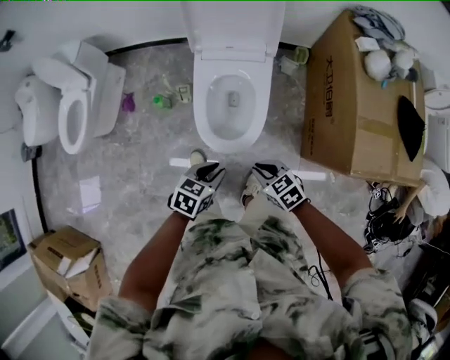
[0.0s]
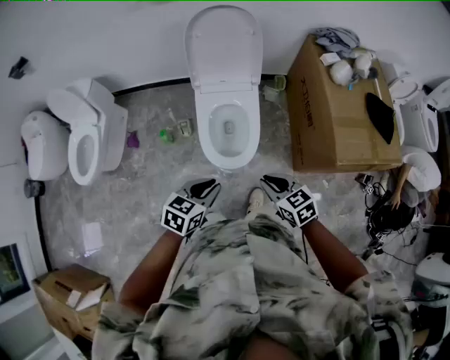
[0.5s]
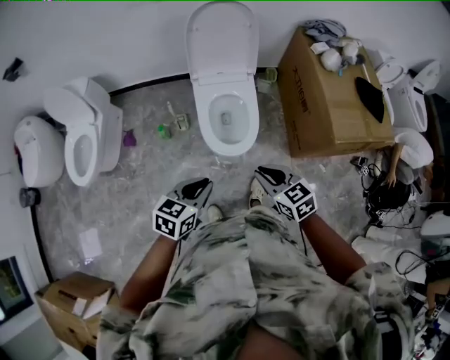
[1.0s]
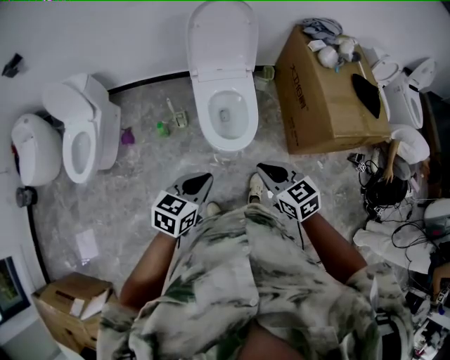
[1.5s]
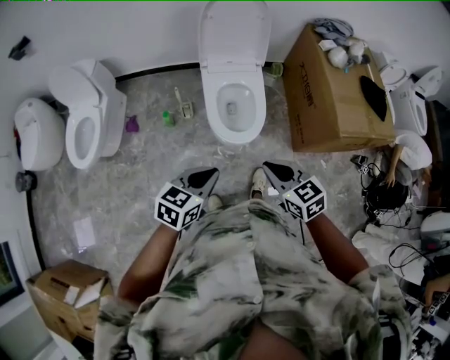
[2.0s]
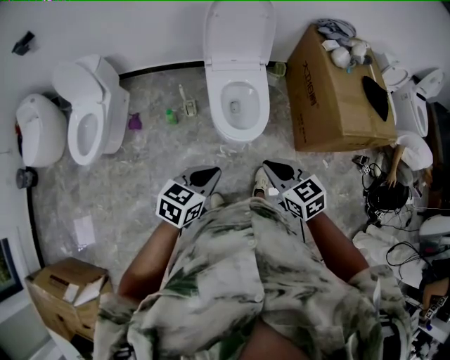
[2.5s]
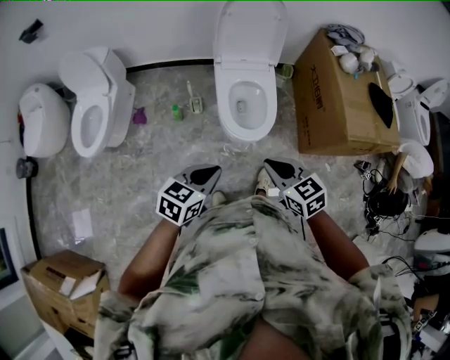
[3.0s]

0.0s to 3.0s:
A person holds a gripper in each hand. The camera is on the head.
0.0s to 1.5s: The two grippers go roughly 35 cm upward, backward and to the left. The left gripper rotates some 20 degrees, while the right gripper changes its angle by roughly 30 degrees.
1.5s to 3.0s: The two grippers go roughly 5 cm to the left.

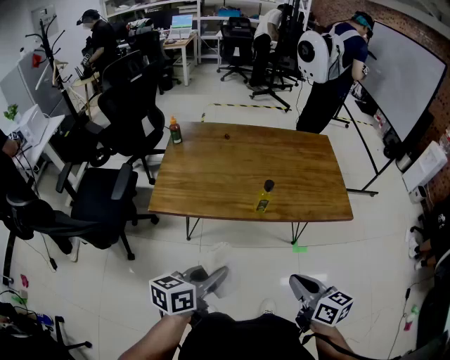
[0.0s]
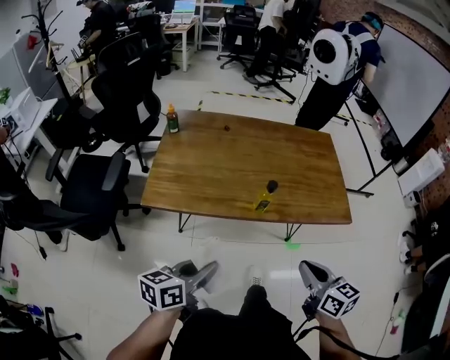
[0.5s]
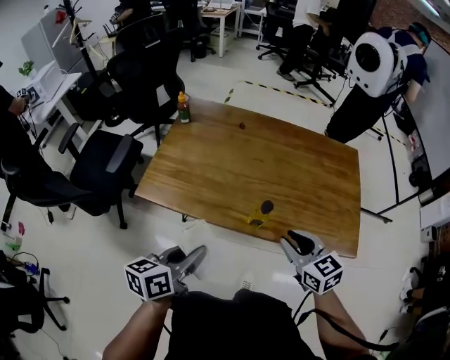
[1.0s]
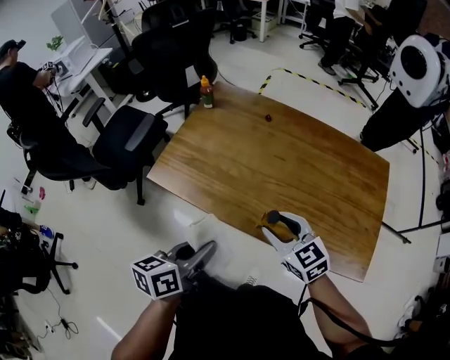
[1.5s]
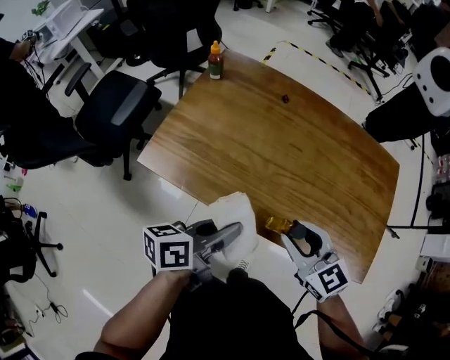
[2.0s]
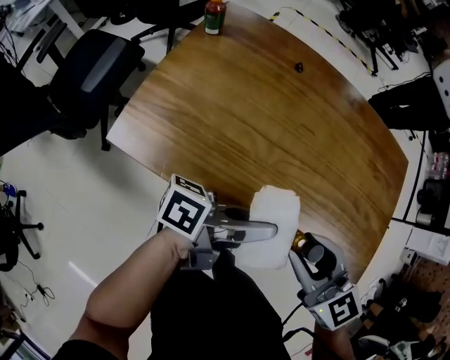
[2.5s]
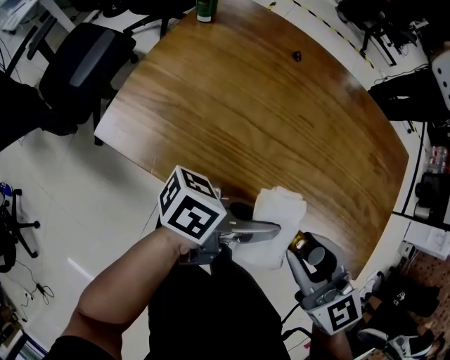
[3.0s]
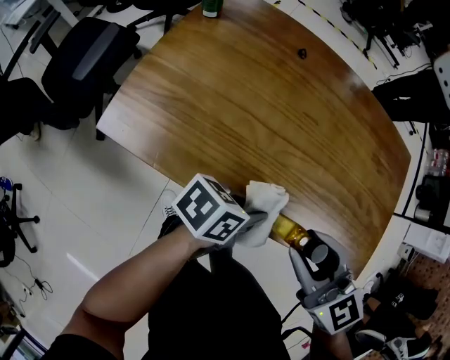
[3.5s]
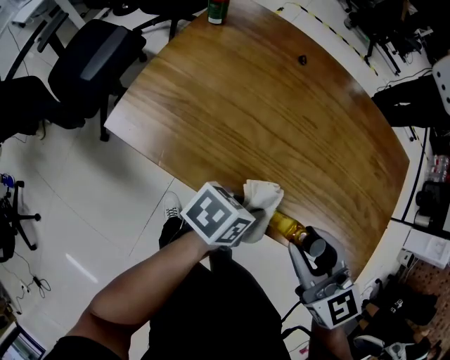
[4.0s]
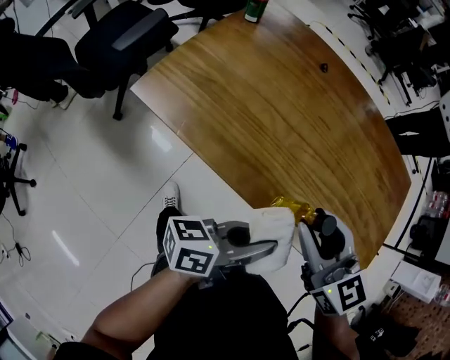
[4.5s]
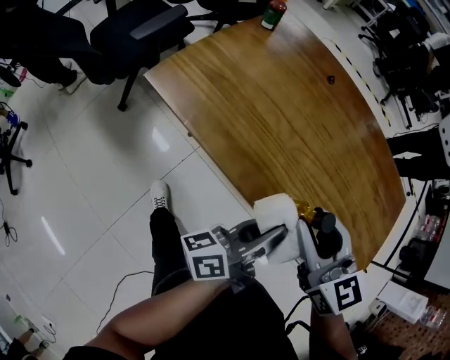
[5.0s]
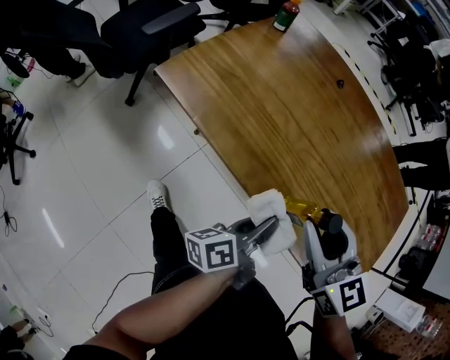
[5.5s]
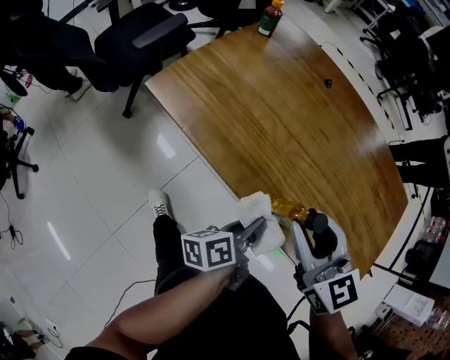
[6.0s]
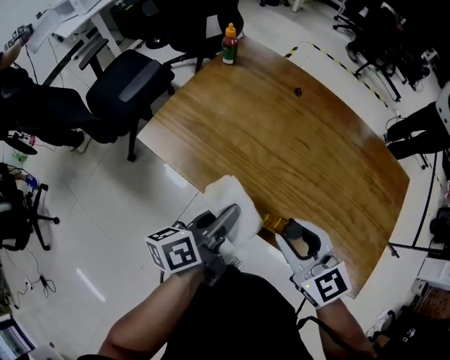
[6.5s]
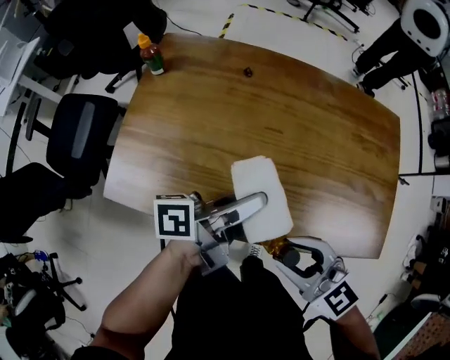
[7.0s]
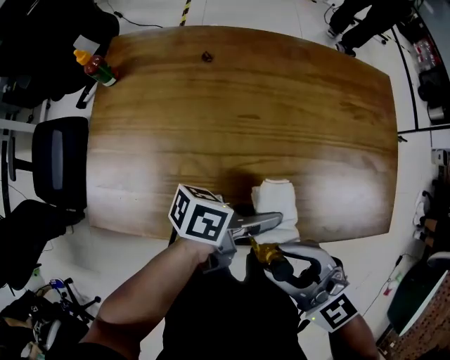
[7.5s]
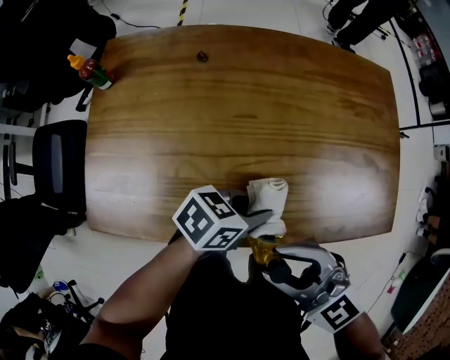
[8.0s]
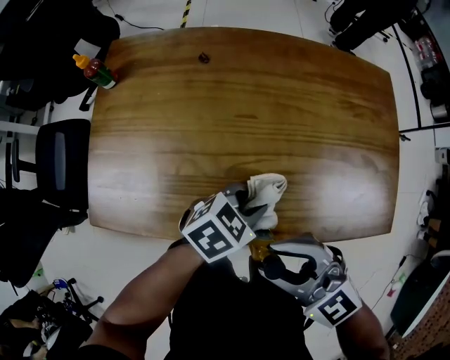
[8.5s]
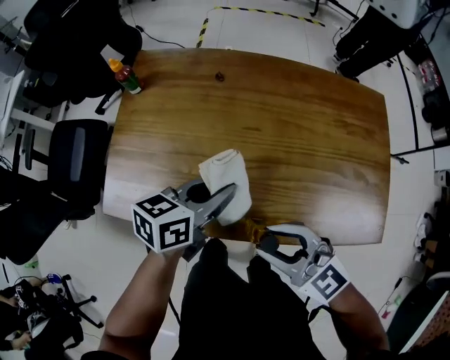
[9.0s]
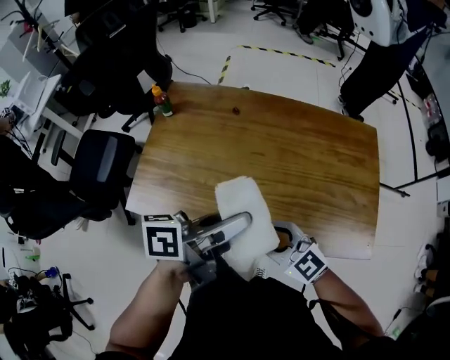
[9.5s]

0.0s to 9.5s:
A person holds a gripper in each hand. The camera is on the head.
0.0s to 2.0s: The right gripper ends up about 30 cm from where it was, changes its angle by some 50 degrees, and opens its fingers. Meanwhile the left gripper ends up some 25 cm from where it was, and turns by approximately 30 degrees.
2.0s to 4.0s: The left gripper goes approximately 15 cm downward and to the right, and swivels some 40 degrees.
4.0s to 5.5s: The left gripper moves approximately 10 cm upward and comes back, and rotates about 70 degrees.
5.5s to 7.5s: The left gripper moves approximately 10 cm upward and comes back, and swivels roughly 80 degrees.
7.5s to 9.5s: The left gripper moves upward, approximately 20 cm, and changes its angle by some 30 degrees.

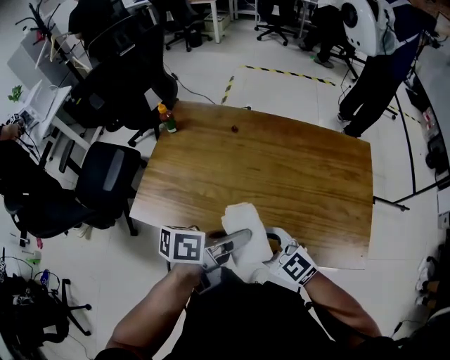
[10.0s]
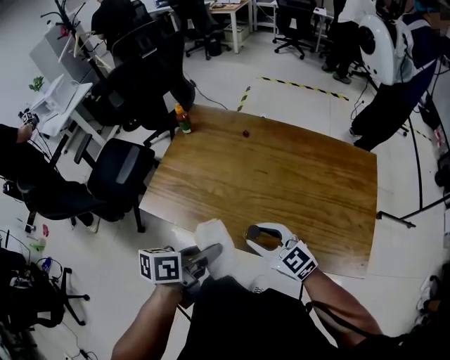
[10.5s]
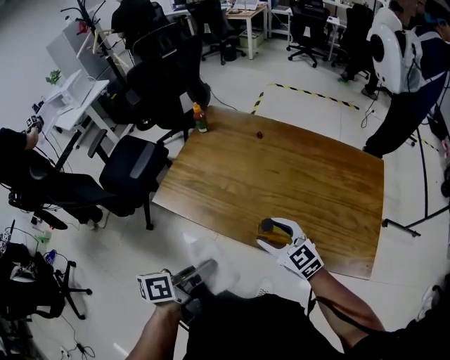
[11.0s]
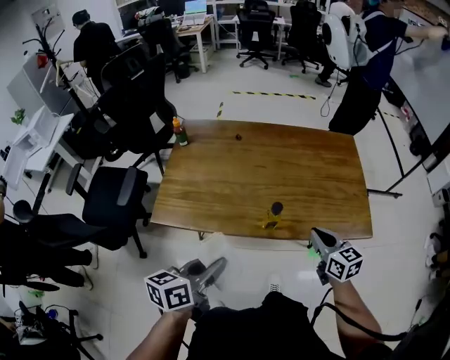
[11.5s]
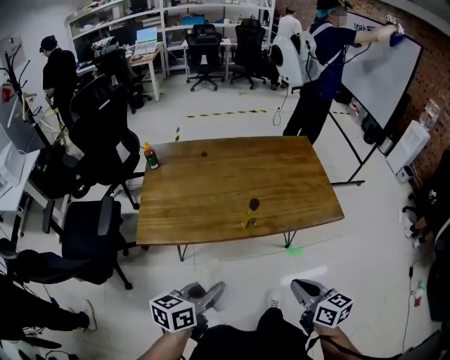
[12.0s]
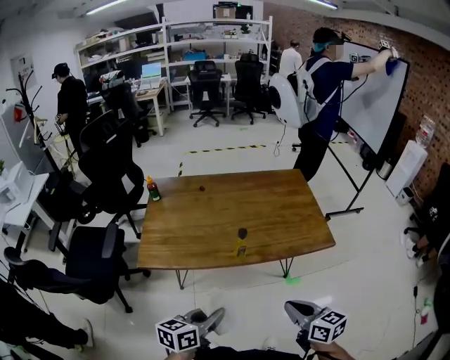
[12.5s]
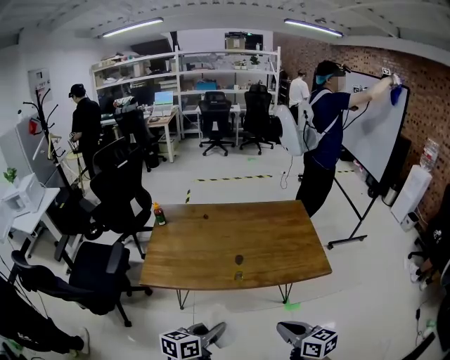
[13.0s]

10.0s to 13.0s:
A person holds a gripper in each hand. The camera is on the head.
10.0s to 11.5s: The left gripper shifts by some 20 cm, and changes its angle by some 20 degrees; the right gripper moves about 15 cm, turns by some 50 degrees, and opens, then closes again.
11.5s to 13.0s: The left gripper travels backward and to the right by roughly 15 cm; the right gripper travels backward by about 25 cm.

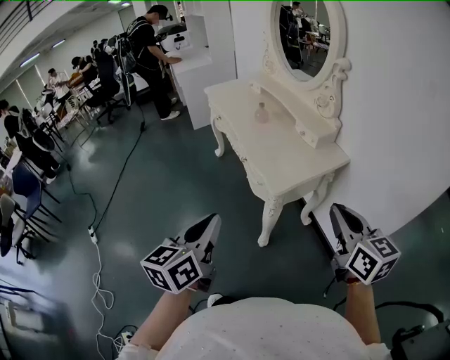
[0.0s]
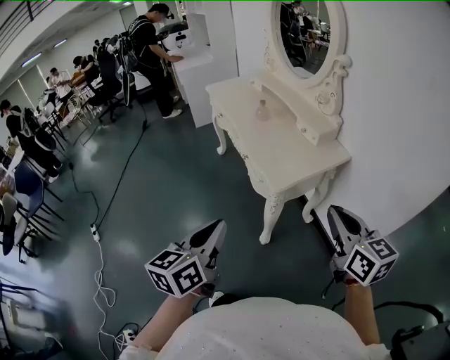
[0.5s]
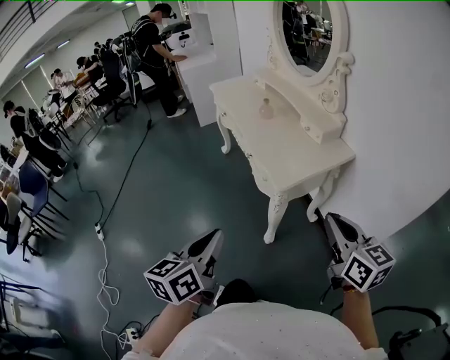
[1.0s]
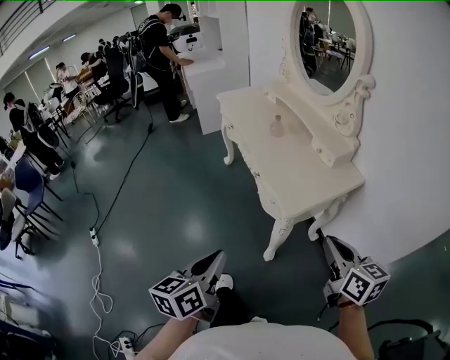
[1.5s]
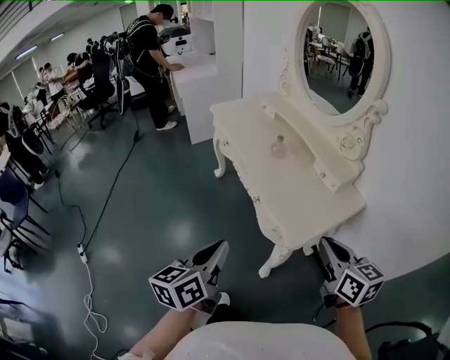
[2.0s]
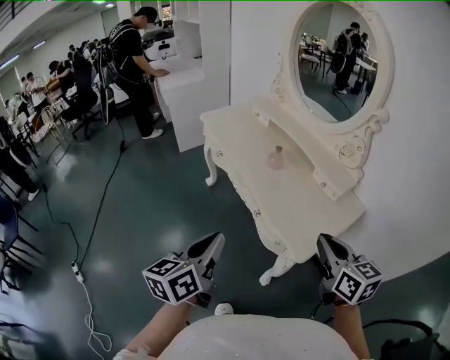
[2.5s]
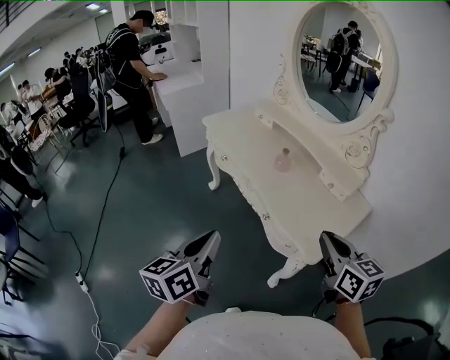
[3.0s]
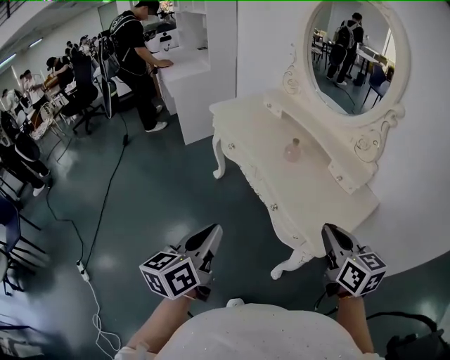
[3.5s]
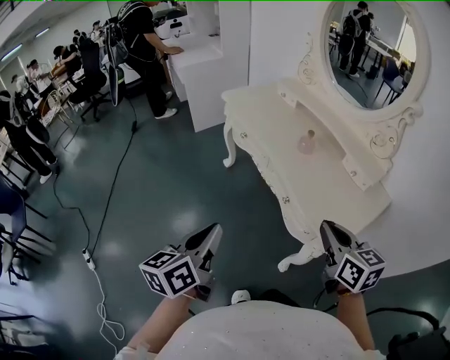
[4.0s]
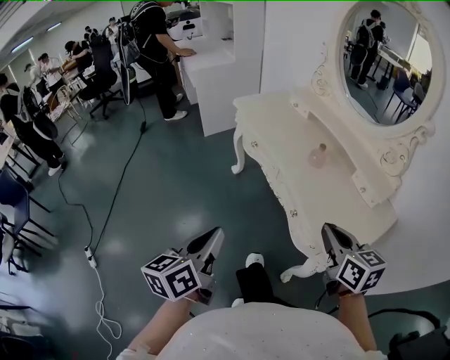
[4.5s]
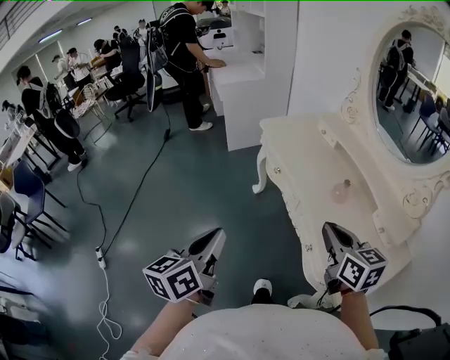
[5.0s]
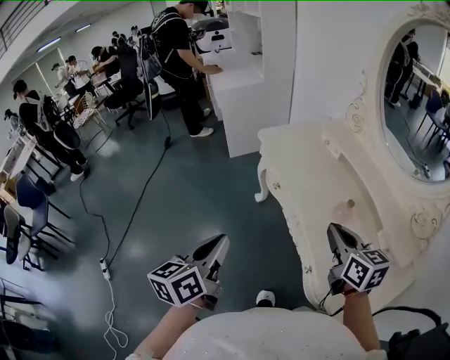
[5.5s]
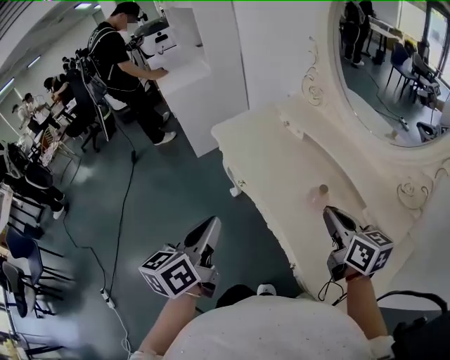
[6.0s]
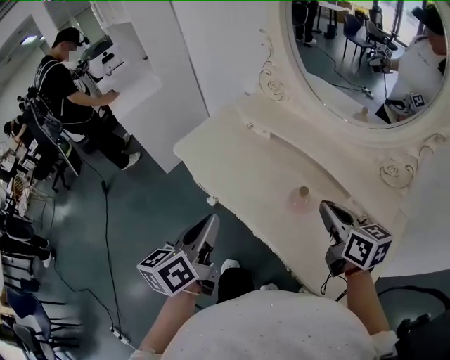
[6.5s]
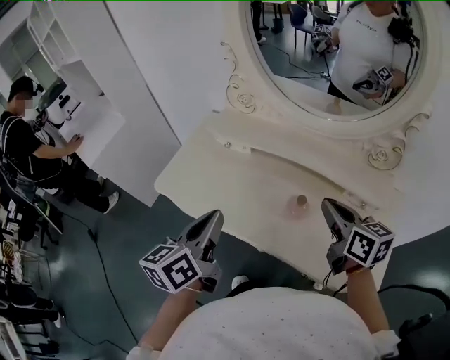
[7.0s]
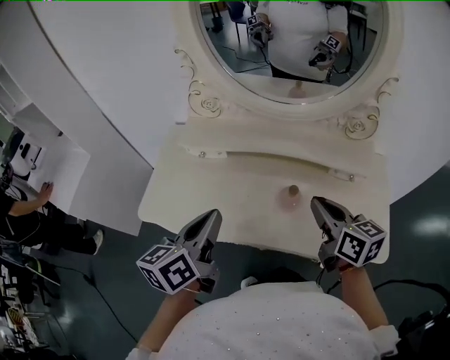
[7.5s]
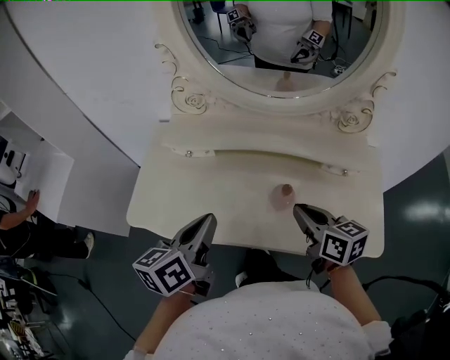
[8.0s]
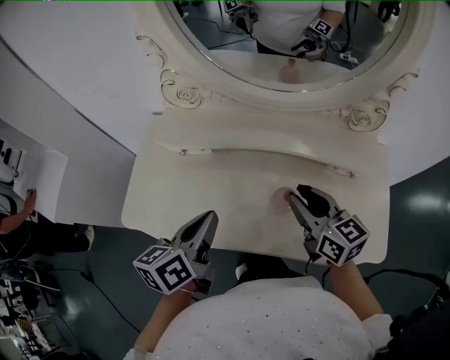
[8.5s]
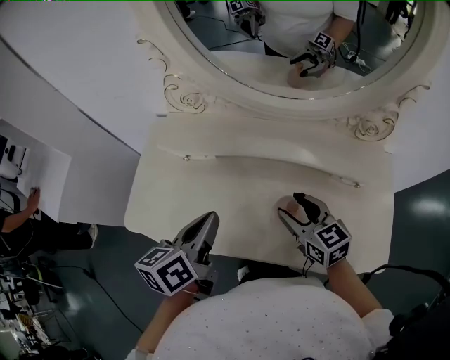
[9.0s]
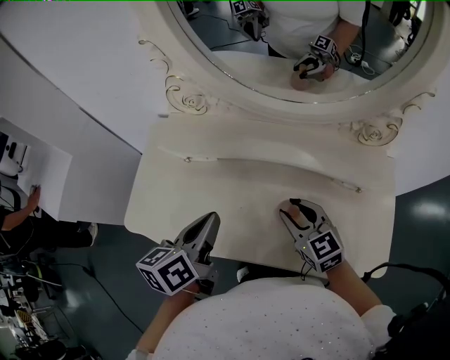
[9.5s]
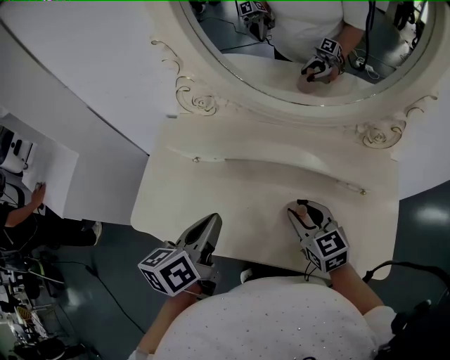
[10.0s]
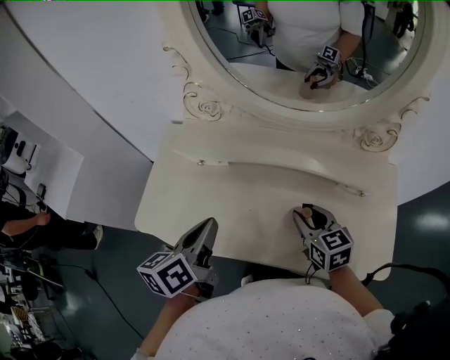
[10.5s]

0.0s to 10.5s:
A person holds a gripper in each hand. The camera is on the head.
0.0s to 2.0s: Both grippers travel together forward and to the left, approximately 20 cm.
2.0s to 4.0s: Both grippers travel together to the left and forward, roughly 20 cm.
4.0s to 6.5s: The grippers both shift forward by about 40 cm.
6.5s to 8.5s: The right gripper ends up about 10 cm from where it was, turns by roughly 30 degrees, and opens. The left gripper shifts by roughly 20 cm, and rotates about 40 degrees.
8.5s to 10.5s: The right gripper goes roughly 5 cm downward, and opens, then closes again.
